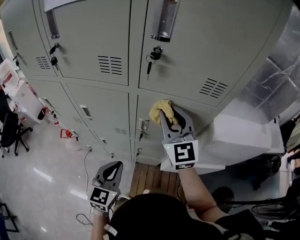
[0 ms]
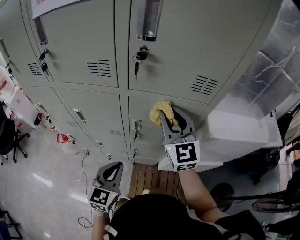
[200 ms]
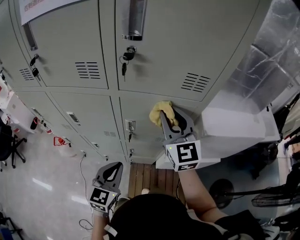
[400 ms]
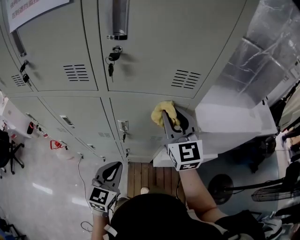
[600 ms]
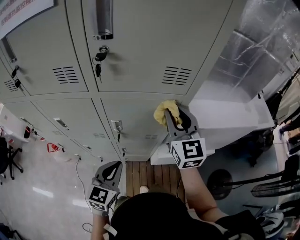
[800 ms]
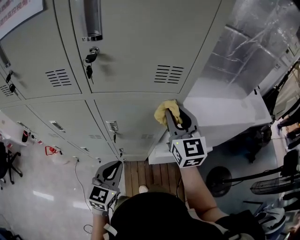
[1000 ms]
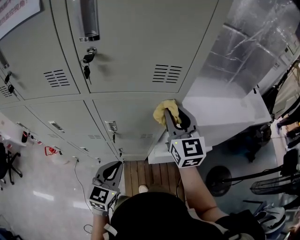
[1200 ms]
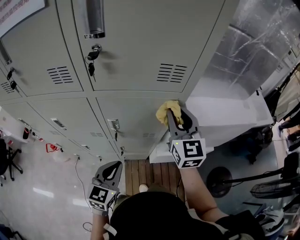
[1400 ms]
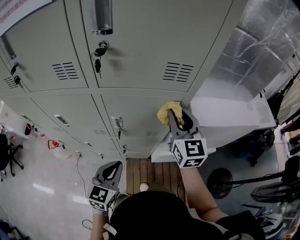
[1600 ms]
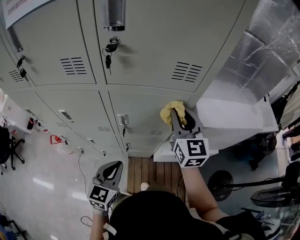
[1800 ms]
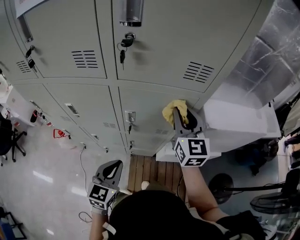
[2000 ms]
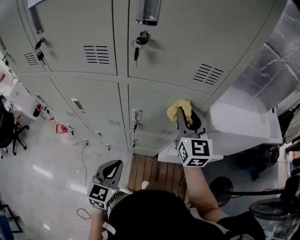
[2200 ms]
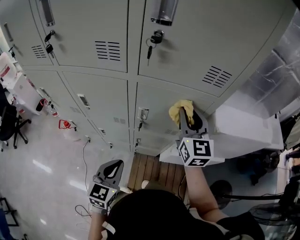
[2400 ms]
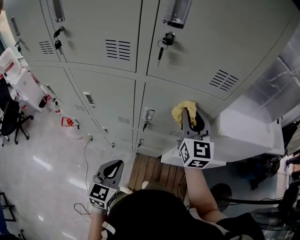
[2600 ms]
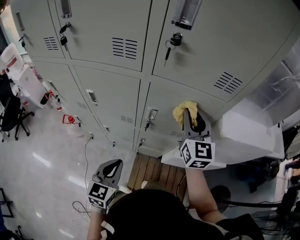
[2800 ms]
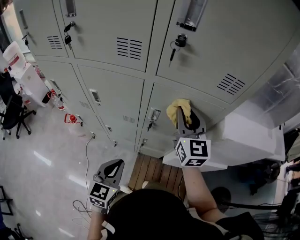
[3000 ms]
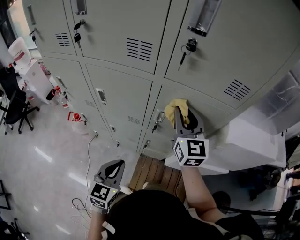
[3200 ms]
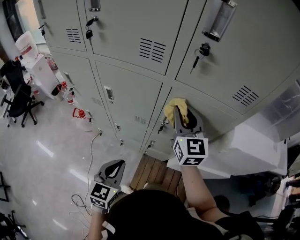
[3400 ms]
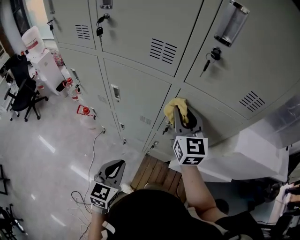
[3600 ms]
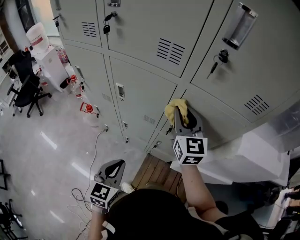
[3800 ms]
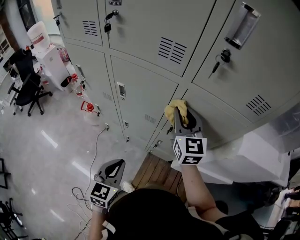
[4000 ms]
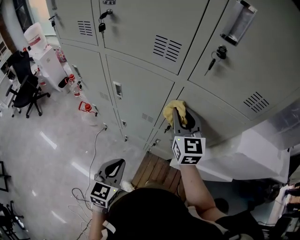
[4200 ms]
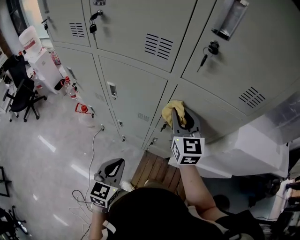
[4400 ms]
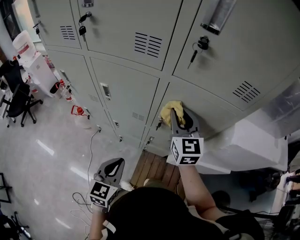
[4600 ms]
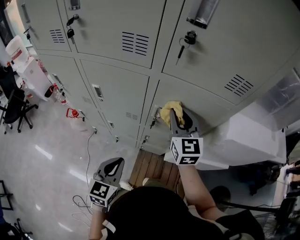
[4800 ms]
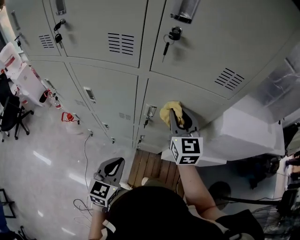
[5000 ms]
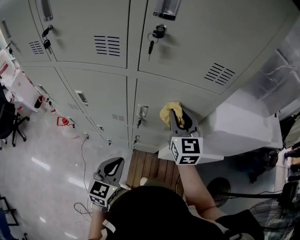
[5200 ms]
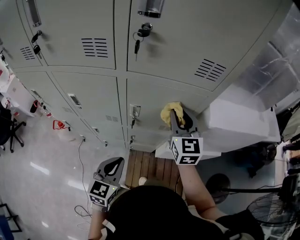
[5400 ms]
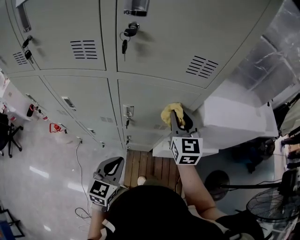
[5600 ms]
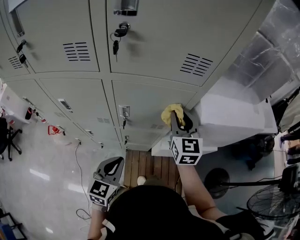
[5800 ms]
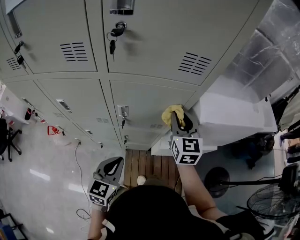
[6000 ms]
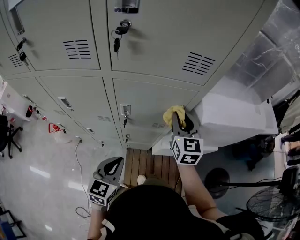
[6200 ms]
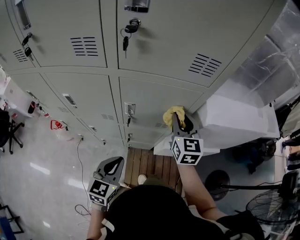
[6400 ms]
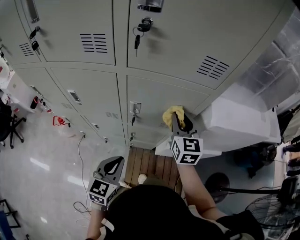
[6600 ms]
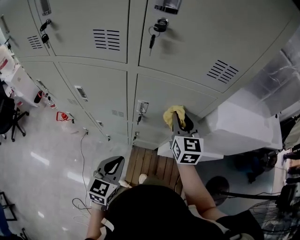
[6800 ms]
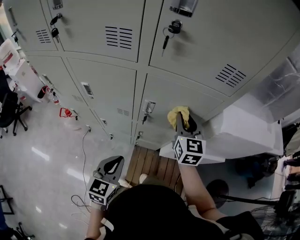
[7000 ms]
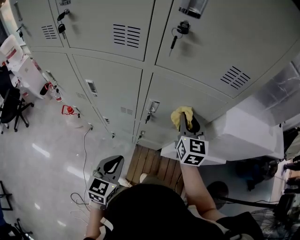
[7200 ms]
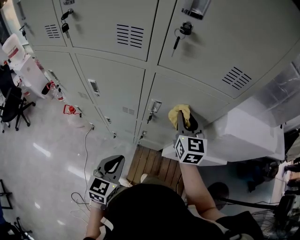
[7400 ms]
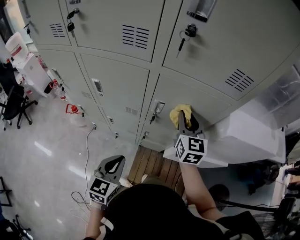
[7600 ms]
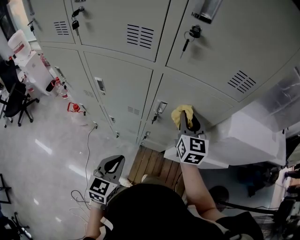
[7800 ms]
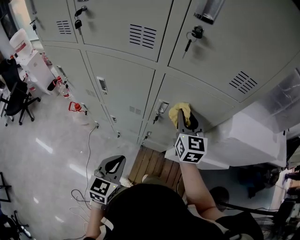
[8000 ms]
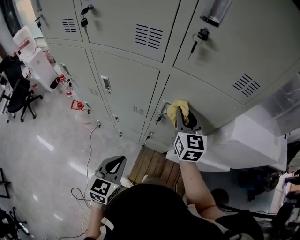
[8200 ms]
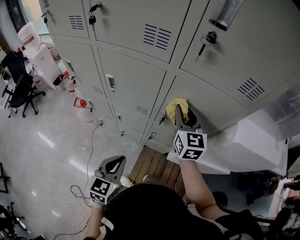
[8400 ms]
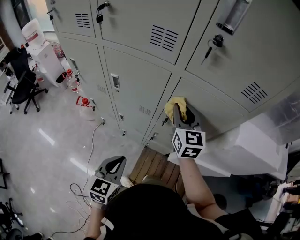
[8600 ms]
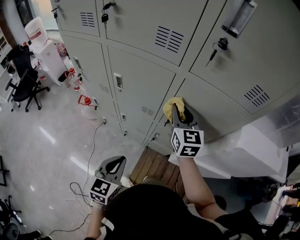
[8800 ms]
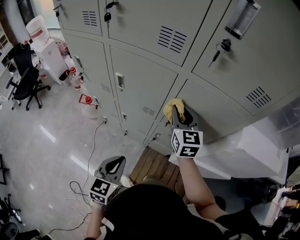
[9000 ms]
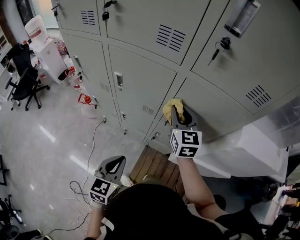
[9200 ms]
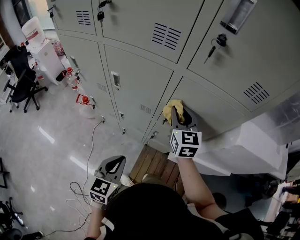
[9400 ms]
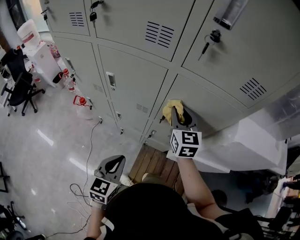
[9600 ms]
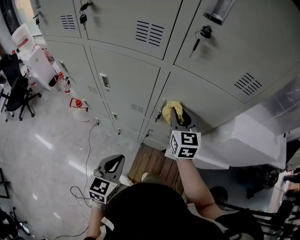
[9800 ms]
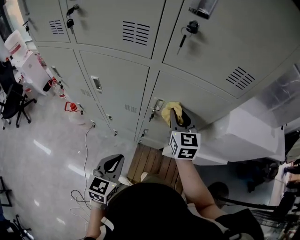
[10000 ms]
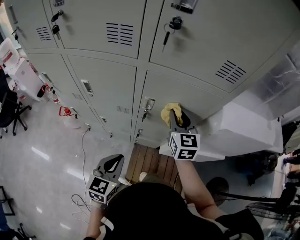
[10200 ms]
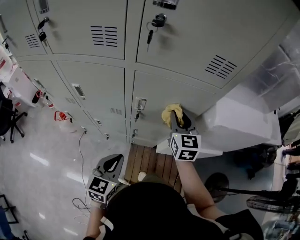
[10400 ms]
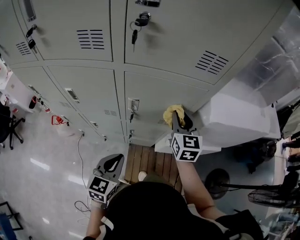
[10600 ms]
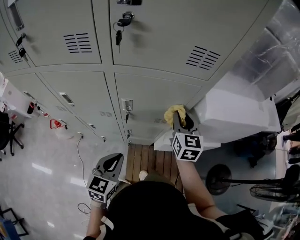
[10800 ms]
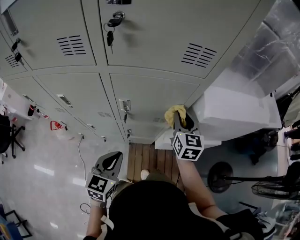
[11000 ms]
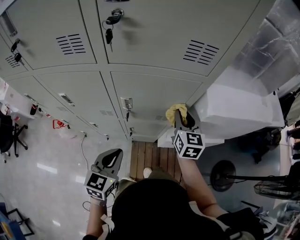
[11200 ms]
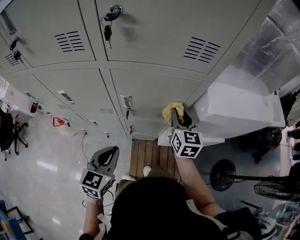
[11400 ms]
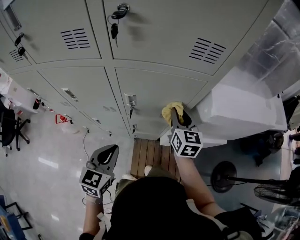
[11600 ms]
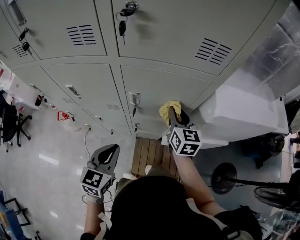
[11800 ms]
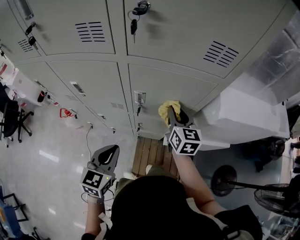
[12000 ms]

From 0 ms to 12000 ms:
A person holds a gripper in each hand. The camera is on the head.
From 0 ms to 1600 ms: The right gripper is displaced to the right by roughly 15 cm, and swivels approximately 20 degrees. Meanwhile the left gripper moves to the right, about 5 cm.
From 1600 ms to 3000 ms: The left gripper shifts some 10 cm to the left and backward. The right gripper moves to the left, roughly 10 cm.
From 3000 ms to 4400 ms: The right gripper shifts about 10 cm to the left.
From 4400 ms to 6000 ms: The left gripper heads to the right and forward, covering some 15 cm, and swivels about 20 degrees; the right gripper heads to the right, covering approximately 20 cm, and turns by some 20 degrees.
From 6000 ms to 7600 ms: The right gripper heads to the left, covering approximately 10 cm. The left gripper goes about 10 cm to the left and backward.
From 7600 ms to 9000 ms: The left gripper changes place by some 5 cm; the right gripper heads to the left, covering approximately 10 cm.
From 9000 ms to 10400 ms: The left gripper shifts approximately 10 cm to the right. The right gripper is displaced to the right by some 15 cm.
From 10400 ms to 12000 ms: The right gripper moves approximately 10 cm to the right and comes back.

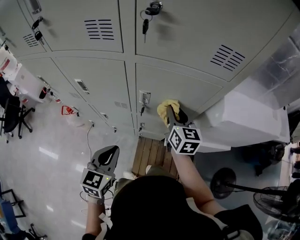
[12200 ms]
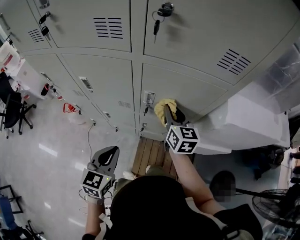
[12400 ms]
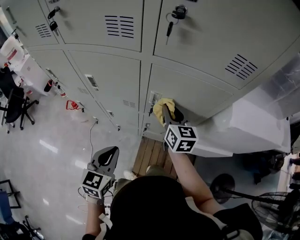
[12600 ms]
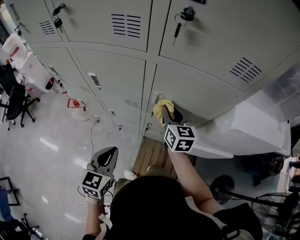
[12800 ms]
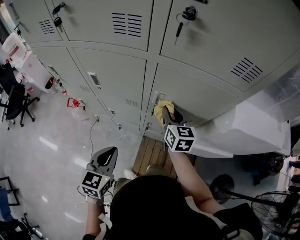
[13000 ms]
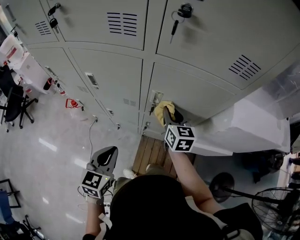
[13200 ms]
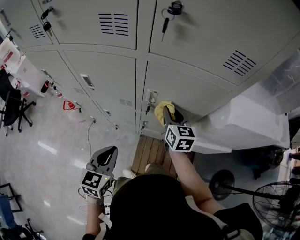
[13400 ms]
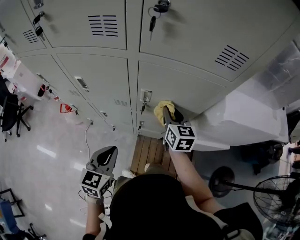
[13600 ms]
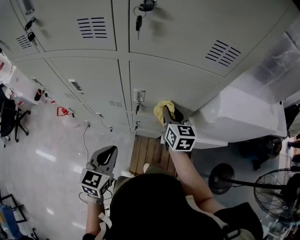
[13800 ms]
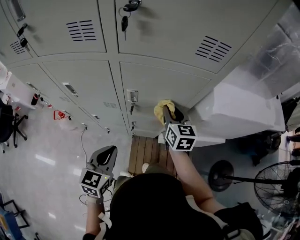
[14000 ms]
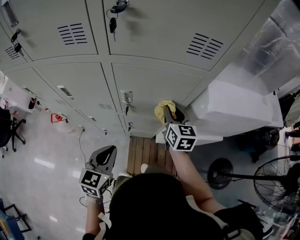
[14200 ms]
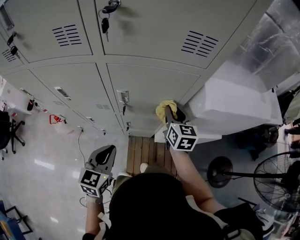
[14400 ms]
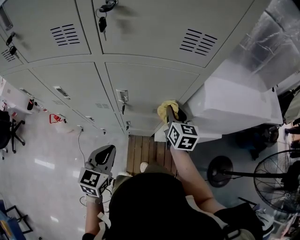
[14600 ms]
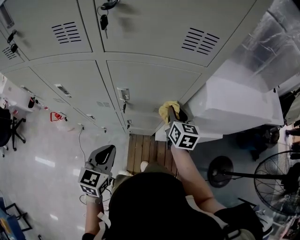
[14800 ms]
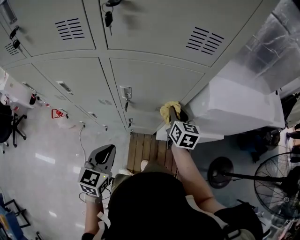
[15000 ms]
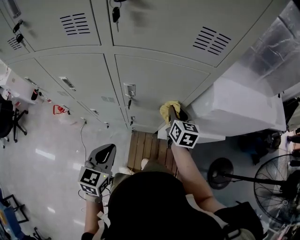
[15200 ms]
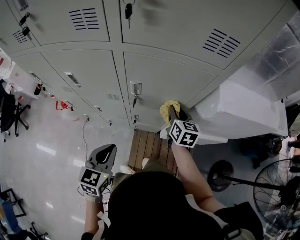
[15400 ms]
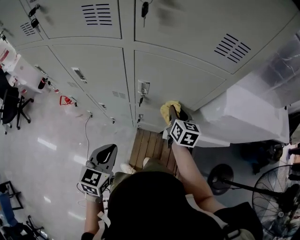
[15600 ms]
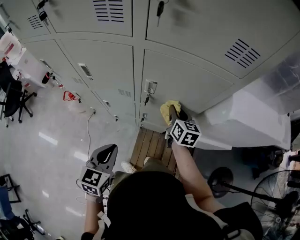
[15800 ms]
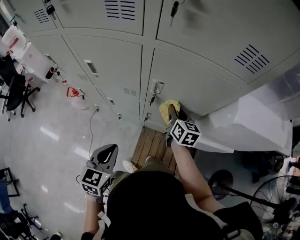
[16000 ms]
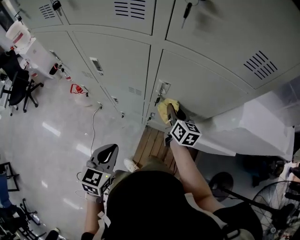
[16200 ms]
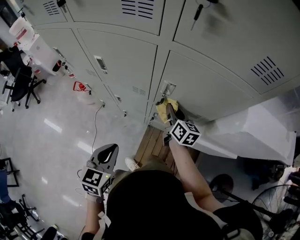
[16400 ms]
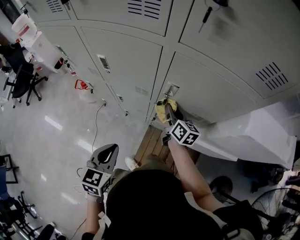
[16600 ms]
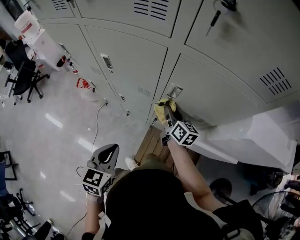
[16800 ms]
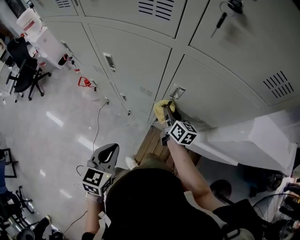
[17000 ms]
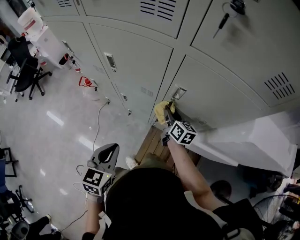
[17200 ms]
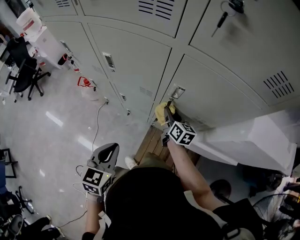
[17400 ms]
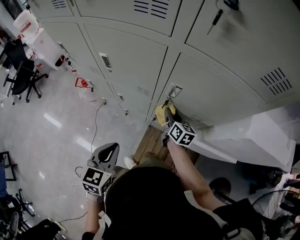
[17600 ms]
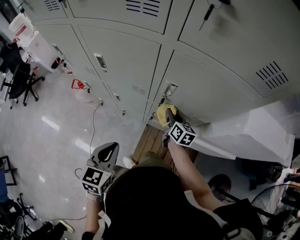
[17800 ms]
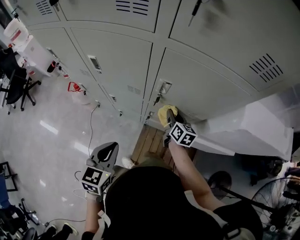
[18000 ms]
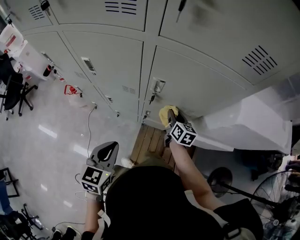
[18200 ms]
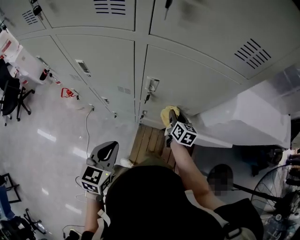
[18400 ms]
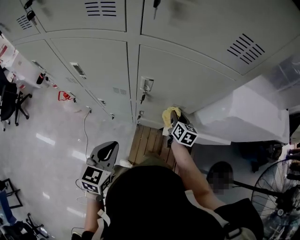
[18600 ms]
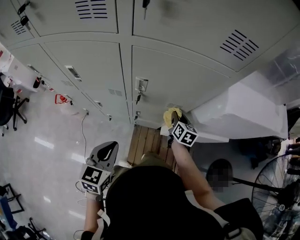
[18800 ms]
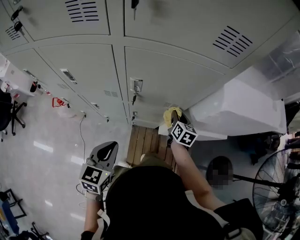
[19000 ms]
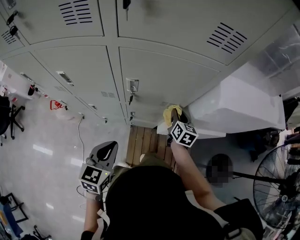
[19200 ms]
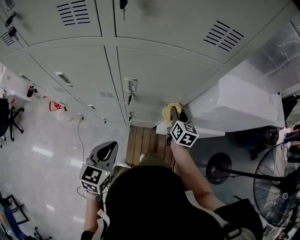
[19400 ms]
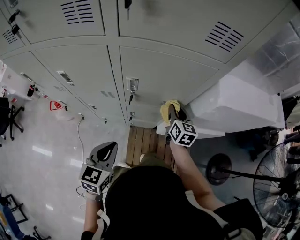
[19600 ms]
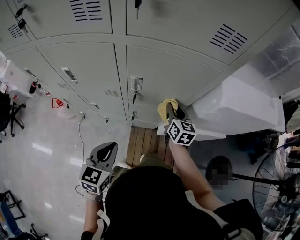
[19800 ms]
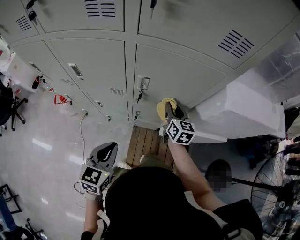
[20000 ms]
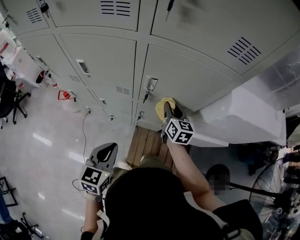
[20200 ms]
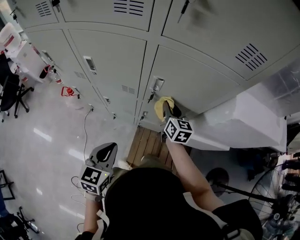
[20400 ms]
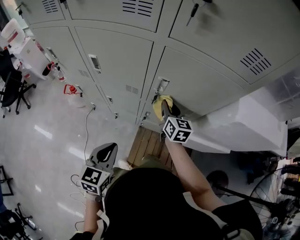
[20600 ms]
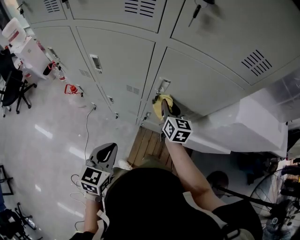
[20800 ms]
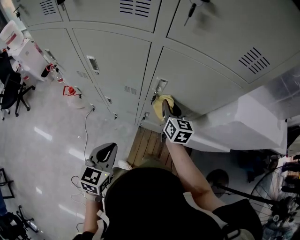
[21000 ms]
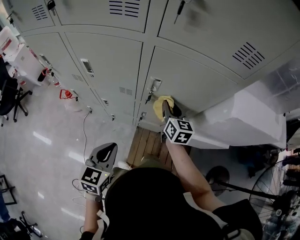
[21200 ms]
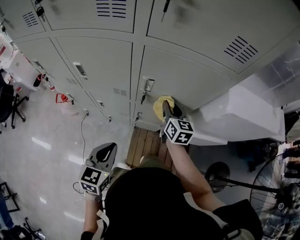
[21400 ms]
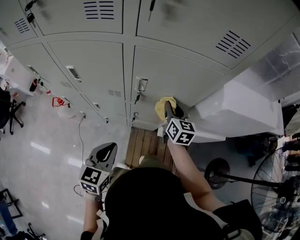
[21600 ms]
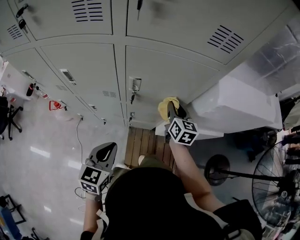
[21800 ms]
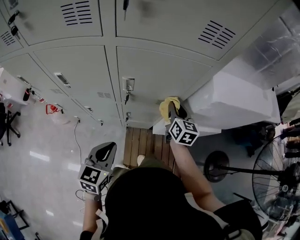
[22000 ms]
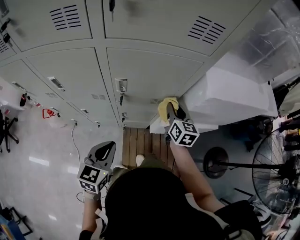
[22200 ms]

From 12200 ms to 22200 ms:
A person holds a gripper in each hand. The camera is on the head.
From 13600 ms to 15000 ms: The right gripper heads to the right, covering some 10 cm. Meanwhile the left gripper moves approximately 5 cm.
From 15000 ms to 16400 ms: The right gripper shifts roughly 15 cm to the left, and rotates approximately 30 degrees. Meanwhile the left gripper travels to the left by roughly 10 cm.
From 16400 ms to 18000 ms: The right gripper heads downward, covering about 5 cm.
From 18000 ms to 19400 ms: The left gripper travels to the right by some 5 cm. The right gripper travels to the right by approximately 15 cm, and swivels roughly 20 degrees.
From 19400 ms to 20800 ms: The left gripper shifts about 10 cm to the left and backward. The right gripper is displaced to the left by some 15 cm, and changes its angle by about 20 degrees.
From 20800 ms to 22200 ms: The right gripper shifts roughly 20 cm to the right. The left gripper goes about 10 cm to the right and forward.

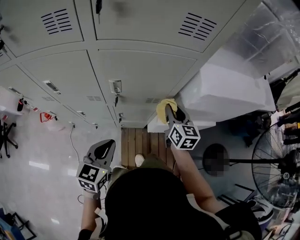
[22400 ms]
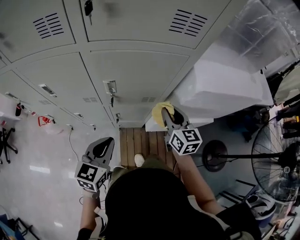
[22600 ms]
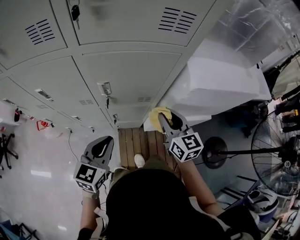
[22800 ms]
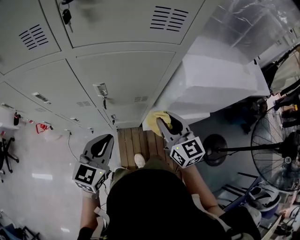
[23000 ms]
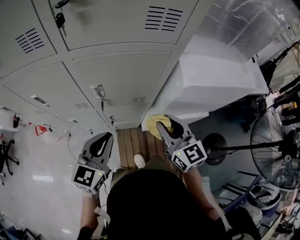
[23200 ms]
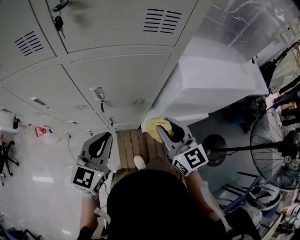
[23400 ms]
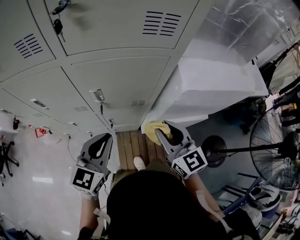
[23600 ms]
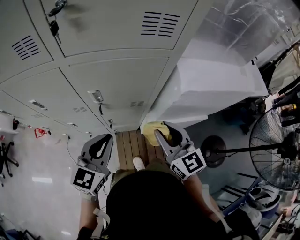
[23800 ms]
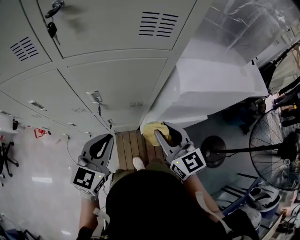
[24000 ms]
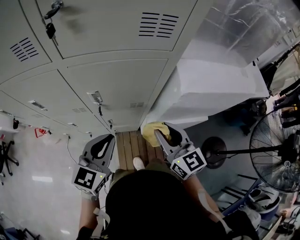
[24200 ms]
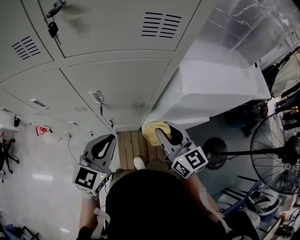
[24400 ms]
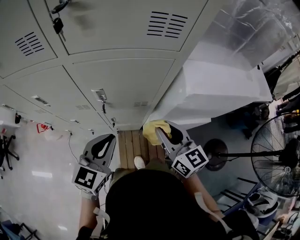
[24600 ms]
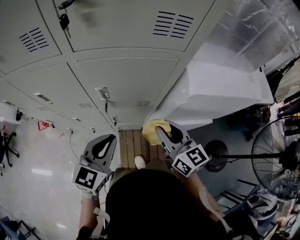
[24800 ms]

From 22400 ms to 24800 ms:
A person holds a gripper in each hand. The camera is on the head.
From 22400 ms to 23600 ms: The left gripper shifts approximately 10 cm upward; the right gripper is displaced backward and upward by some 15 cm, and changes its angle by roughly 20 degrees.
From 23600 ms to 24800 ms: There are only small adjustments of the grippers.
